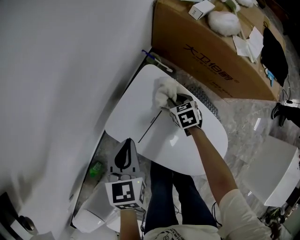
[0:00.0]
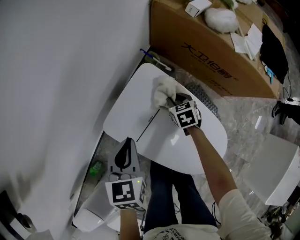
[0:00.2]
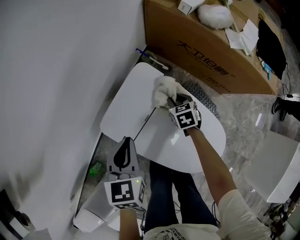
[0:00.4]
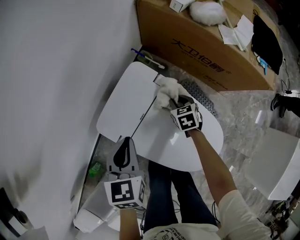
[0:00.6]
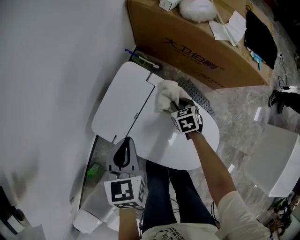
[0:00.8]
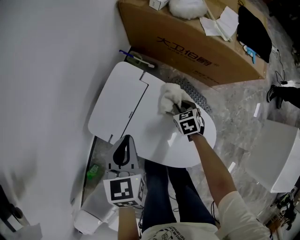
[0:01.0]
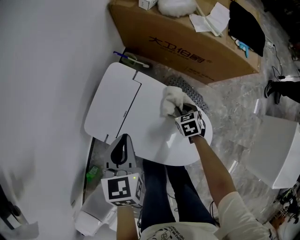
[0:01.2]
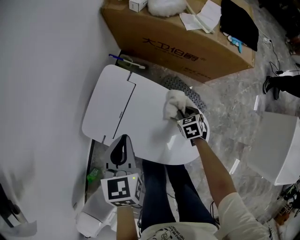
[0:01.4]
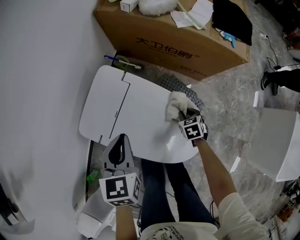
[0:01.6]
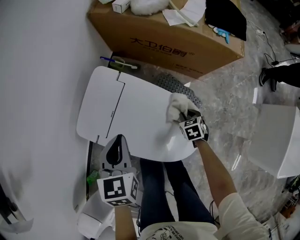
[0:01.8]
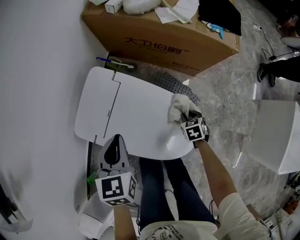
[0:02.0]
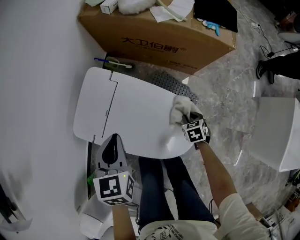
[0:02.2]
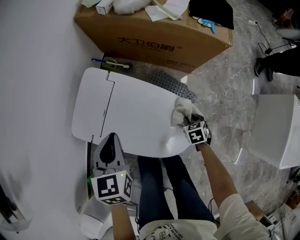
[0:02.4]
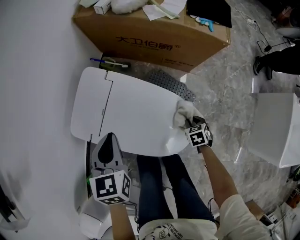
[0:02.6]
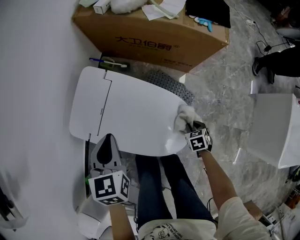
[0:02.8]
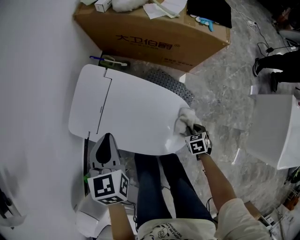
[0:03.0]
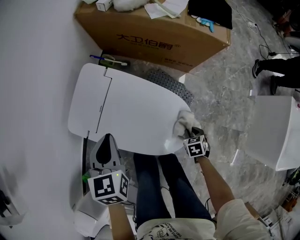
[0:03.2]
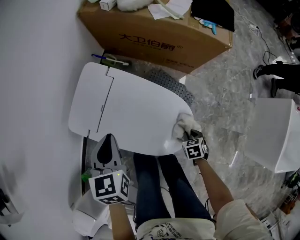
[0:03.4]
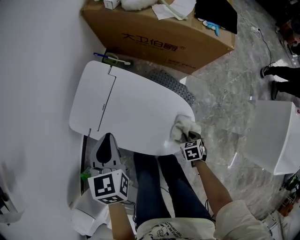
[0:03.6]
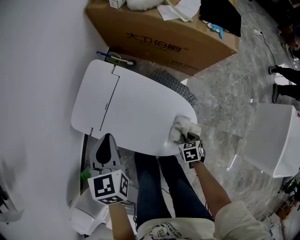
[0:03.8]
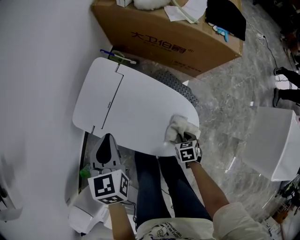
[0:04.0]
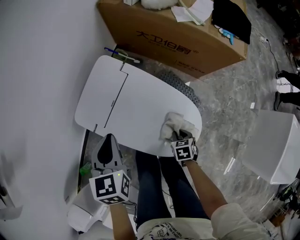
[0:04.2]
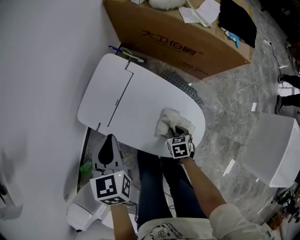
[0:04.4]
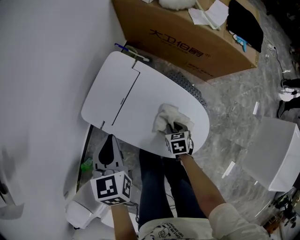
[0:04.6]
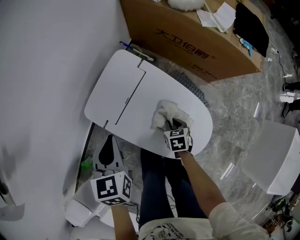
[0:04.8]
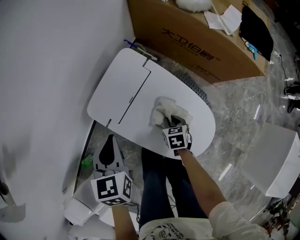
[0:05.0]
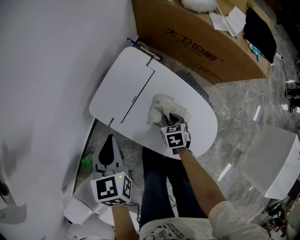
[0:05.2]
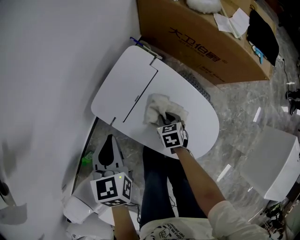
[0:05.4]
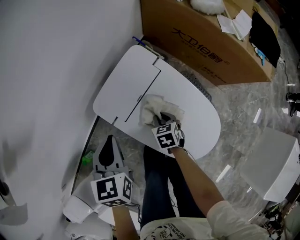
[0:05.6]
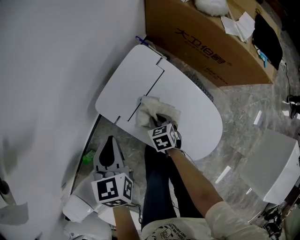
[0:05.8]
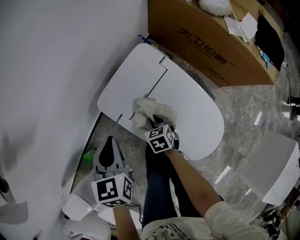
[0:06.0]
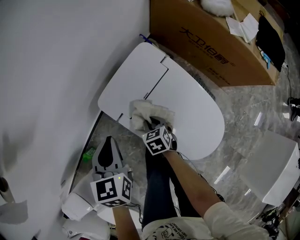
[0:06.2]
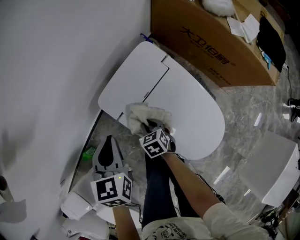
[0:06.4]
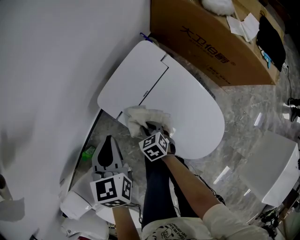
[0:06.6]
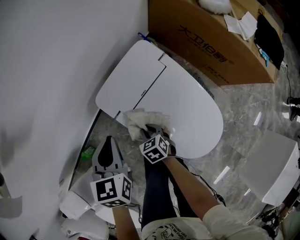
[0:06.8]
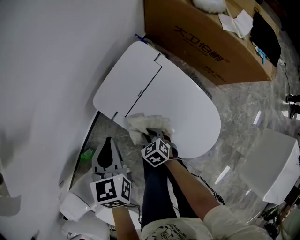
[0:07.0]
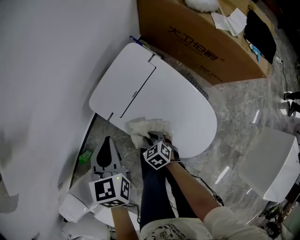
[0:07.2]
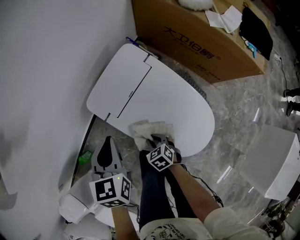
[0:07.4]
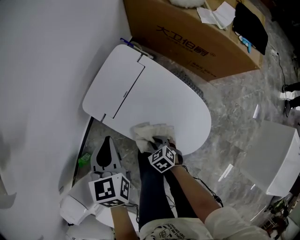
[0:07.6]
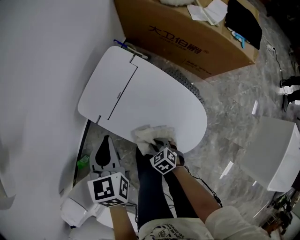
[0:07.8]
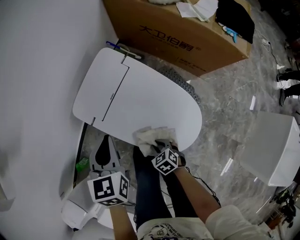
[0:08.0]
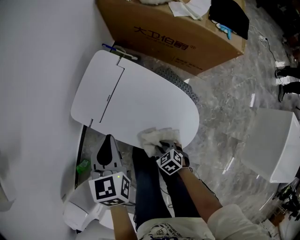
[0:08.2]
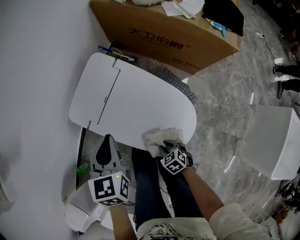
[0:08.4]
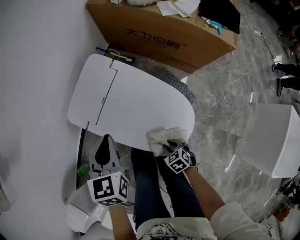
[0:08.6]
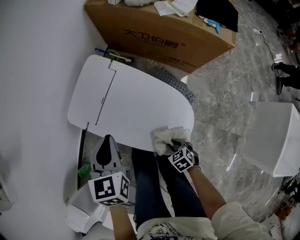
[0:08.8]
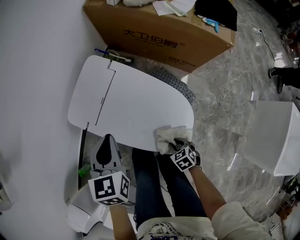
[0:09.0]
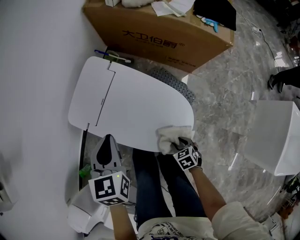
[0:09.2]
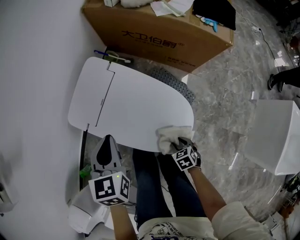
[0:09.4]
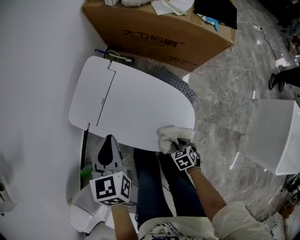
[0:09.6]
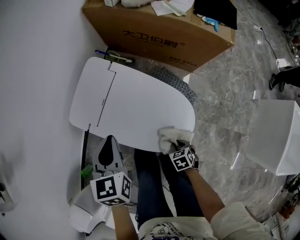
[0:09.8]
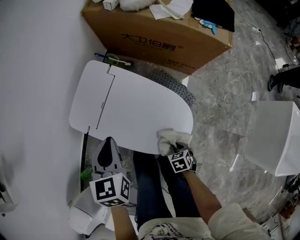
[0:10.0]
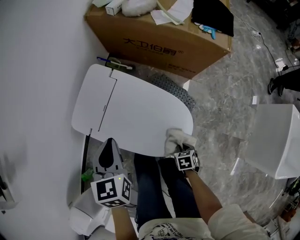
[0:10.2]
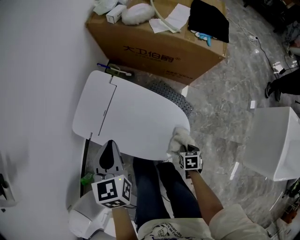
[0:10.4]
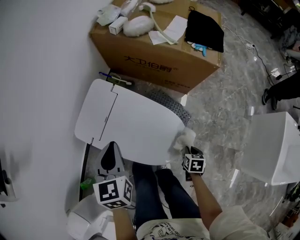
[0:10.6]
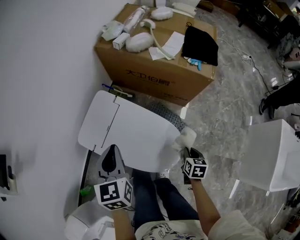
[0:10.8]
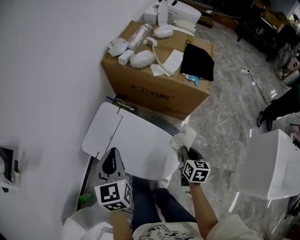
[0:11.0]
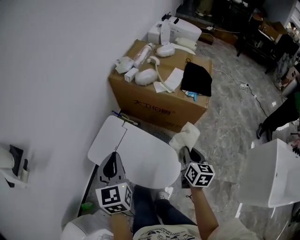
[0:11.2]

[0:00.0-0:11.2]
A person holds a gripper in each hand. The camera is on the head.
0:00.0 to 0:01.6: The right gripper is displaced to the right and backward by roughly 30 cm. Meanwhile the left gripper shifts approximately 15 cm to the right.
0:01.6 to 0:03.2: The right gripper goes approximately 20 cm backward and to the right.
0:03.2 to 0:04.8: The right gripper changes place by about 25 cm. Meanwhile the left gripper changes place by about 10 cm.
0:04.8 to 0:06.4: The right gripper is displaced to the left by approximately 20 cm, and rotates approximately 30 degrees; the left gripper is displaced to the left by some 10 cm.
0:06.4 to 0:08.0: The right gripper shifts some 20 cm backward; the left gripper goes about 15 cm to the right and backward.
0:08.0 to 0:09.6: The right gripper travels to the right and backward by roughly 15 cm, and rotates roughly 20 degrees; the left gripper moves to the right, some 5 cm.
0:09.6 to 0:11.2: The left gripper heads upward, covering roughly 20 cm, while the right gripper is displaced upward by some 35 cm, and tilts its fingers approximately 40 degrees upward.

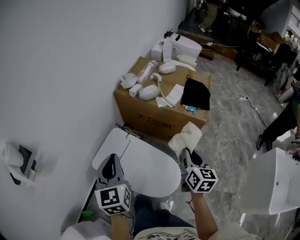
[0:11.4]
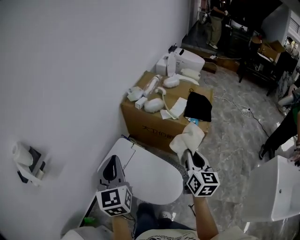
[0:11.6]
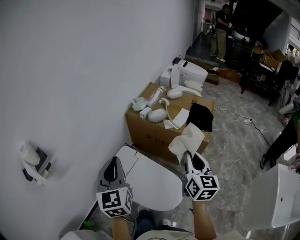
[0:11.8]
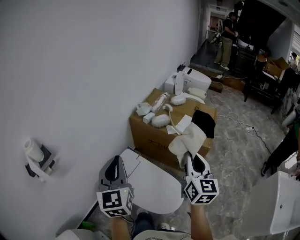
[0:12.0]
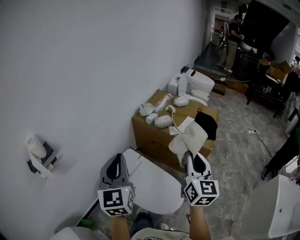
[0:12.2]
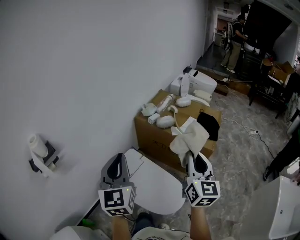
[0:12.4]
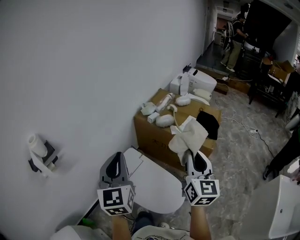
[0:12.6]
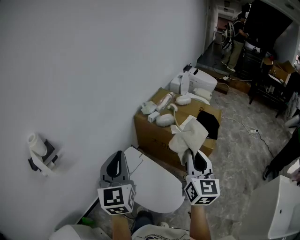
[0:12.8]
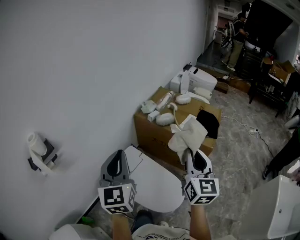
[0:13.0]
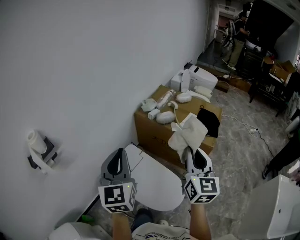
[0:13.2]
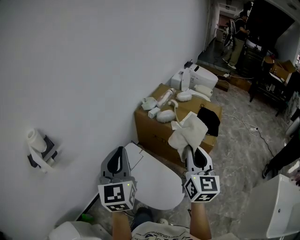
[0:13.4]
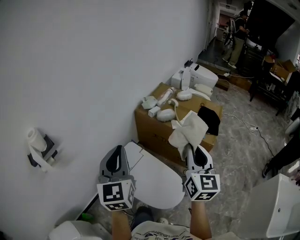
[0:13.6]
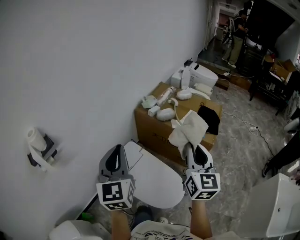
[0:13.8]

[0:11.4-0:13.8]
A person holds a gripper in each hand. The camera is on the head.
0:11.4 to 0:12.6: Both grippers travel together upward, some 20 cm. The right gripper swivels roughly 30 degrees.
0:12.6 to 0:13.8: Both grippers stay about where they are.

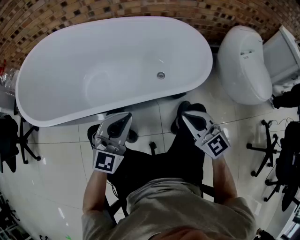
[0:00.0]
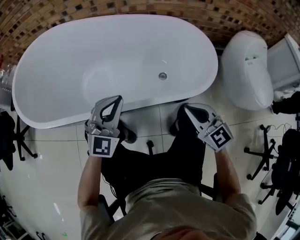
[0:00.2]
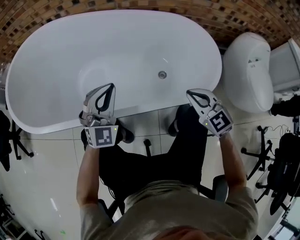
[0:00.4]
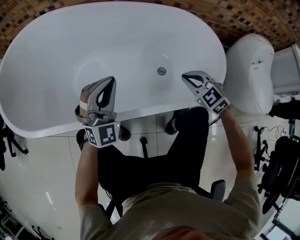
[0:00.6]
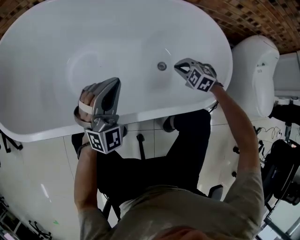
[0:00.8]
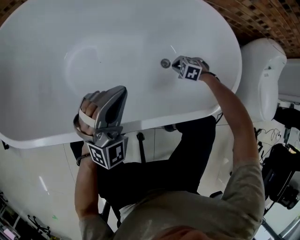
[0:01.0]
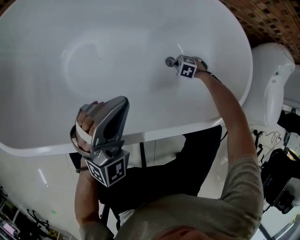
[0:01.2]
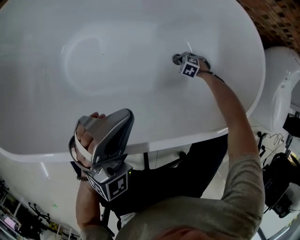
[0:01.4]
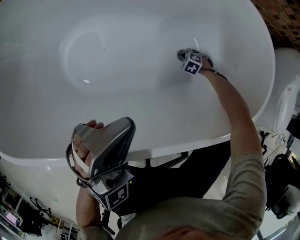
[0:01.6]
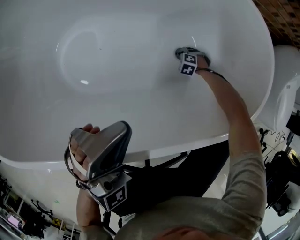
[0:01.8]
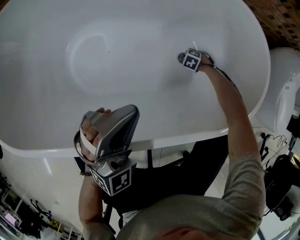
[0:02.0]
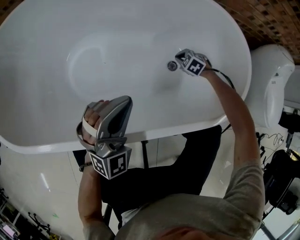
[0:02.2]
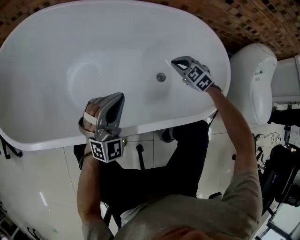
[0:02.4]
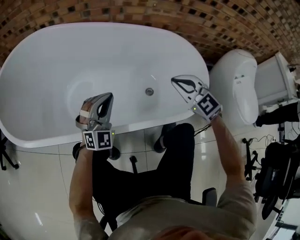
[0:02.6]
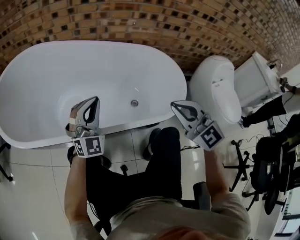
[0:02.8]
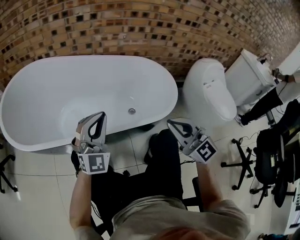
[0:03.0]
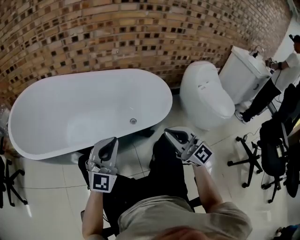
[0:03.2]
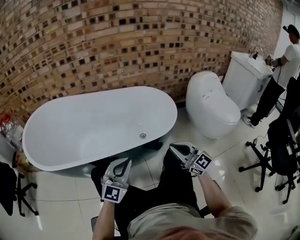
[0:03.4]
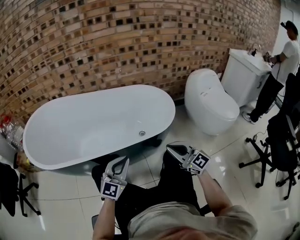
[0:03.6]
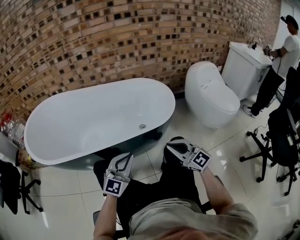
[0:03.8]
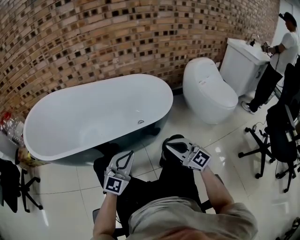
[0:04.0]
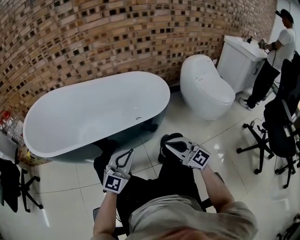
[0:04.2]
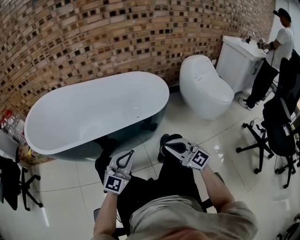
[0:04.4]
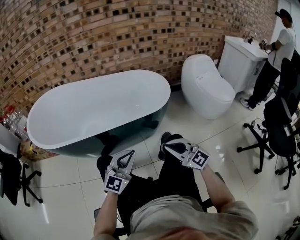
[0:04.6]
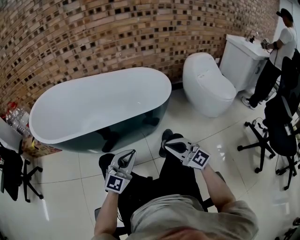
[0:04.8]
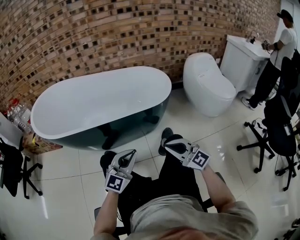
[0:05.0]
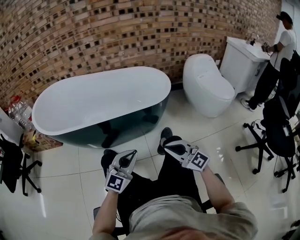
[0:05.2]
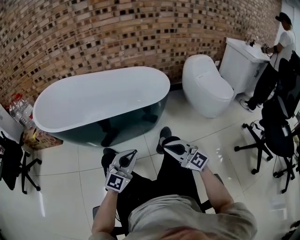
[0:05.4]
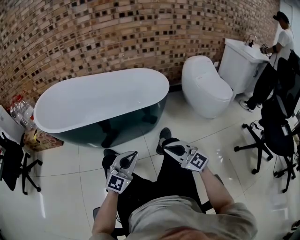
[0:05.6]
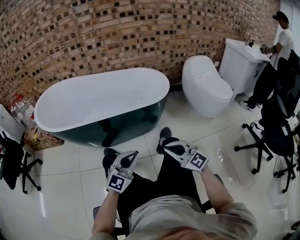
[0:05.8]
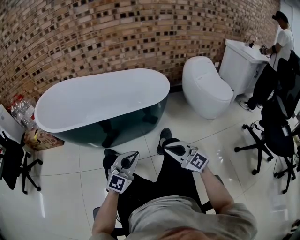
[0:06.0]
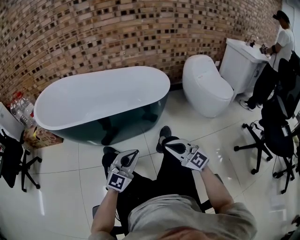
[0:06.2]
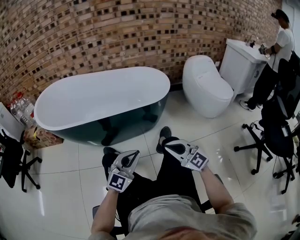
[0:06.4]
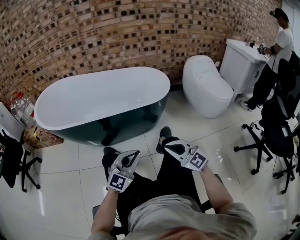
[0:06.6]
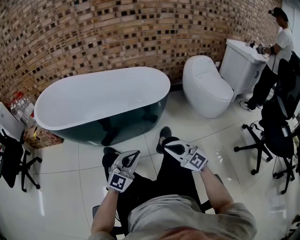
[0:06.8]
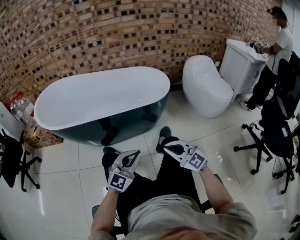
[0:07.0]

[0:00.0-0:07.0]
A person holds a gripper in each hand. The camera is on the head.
0:00.0 to 0:01.4: The left gripper moves about 25 cm, and swivels some 30 degrees. The right gripper is displaced downward by approximately 50 cm, and angles its fingers downward, by roughly 60 degrees.
0:01.4 to 0:02.8: The left gripper shifts approximately 10 cm upward. The right gripper heads upward, covering about 60 cm, and points its fingers approximately 70 degrees further upward.
0:02.8 to 0:04.2: Both grippers travel together backward, some 25 cm. The left gripper changes its angle by about 40 degrees.
0:04.2 to 0:05.6: The grippers both shift backward by some 15 cm.
0:05.6 to 0:07.0: There are only small adjustments of the grippers.

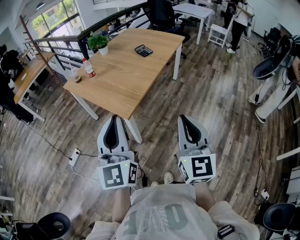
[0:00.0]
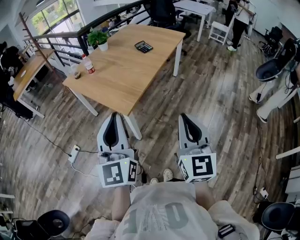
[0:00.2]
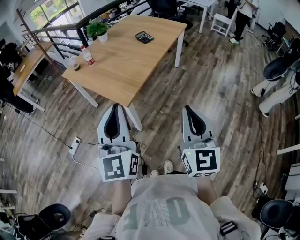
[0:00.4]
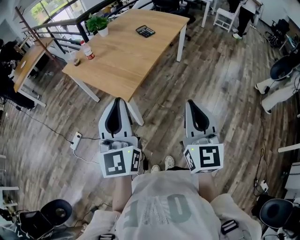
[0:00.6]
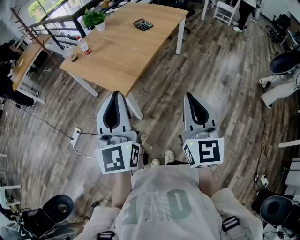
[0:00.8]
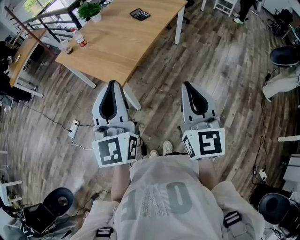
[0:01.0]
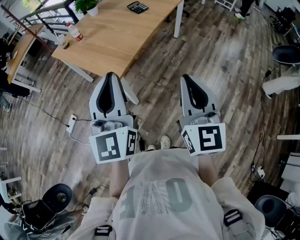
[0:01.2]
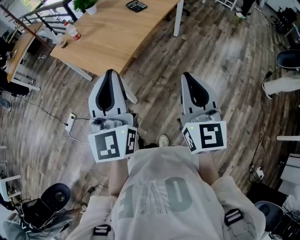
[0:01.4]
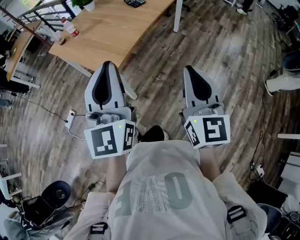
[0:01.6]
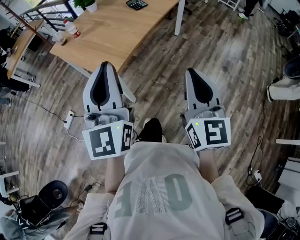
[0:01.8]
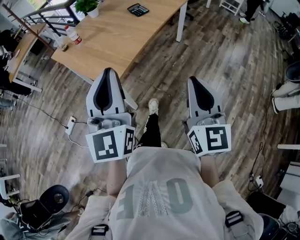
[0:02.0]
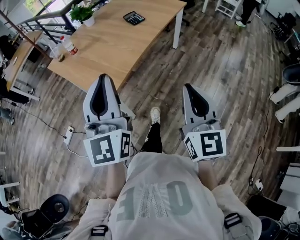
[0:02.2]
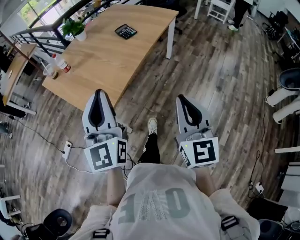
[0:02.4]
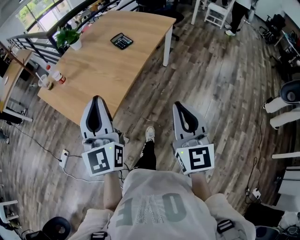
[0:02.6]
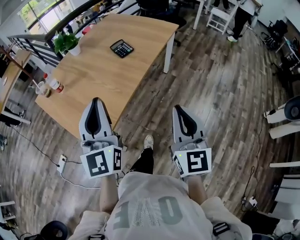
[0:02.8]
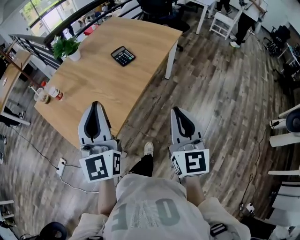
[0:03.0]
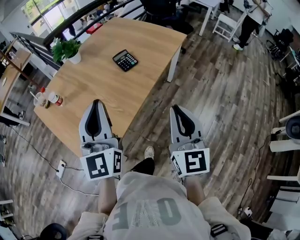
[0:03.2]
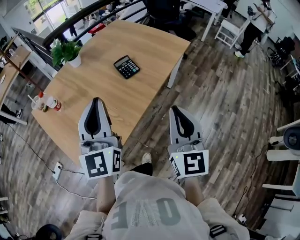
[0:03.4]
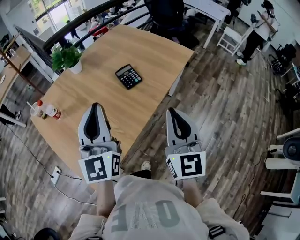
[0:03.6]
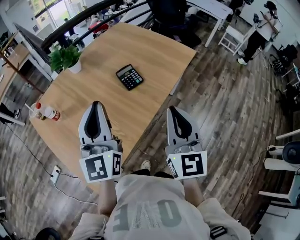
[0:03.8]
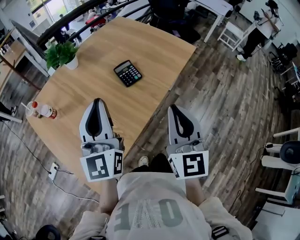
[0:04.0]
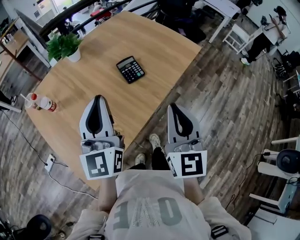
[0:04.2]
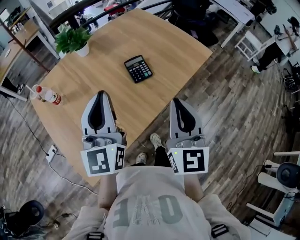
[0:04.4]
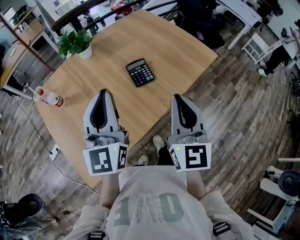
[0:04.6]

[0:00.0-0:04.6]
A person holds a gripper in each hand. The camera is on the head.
0:00.0 to 0:01.6: Both grippers move to the right, about 10 cm.
0:01.6 to 0:03.0: The two grippers go approximately 30 cm forward.
0:03.0 to 0:04.6: The grippers both shift forward by roughly 25 cm.
